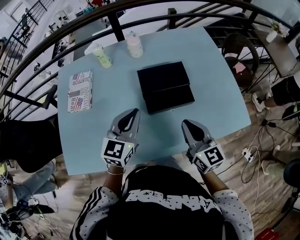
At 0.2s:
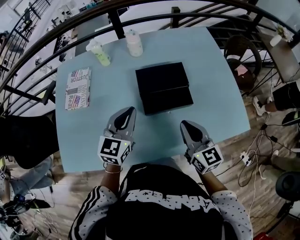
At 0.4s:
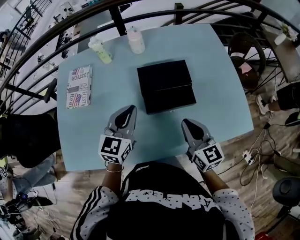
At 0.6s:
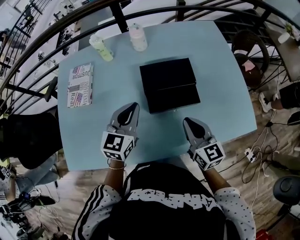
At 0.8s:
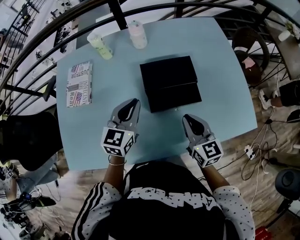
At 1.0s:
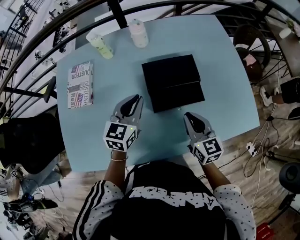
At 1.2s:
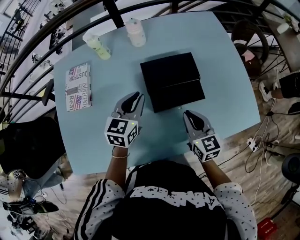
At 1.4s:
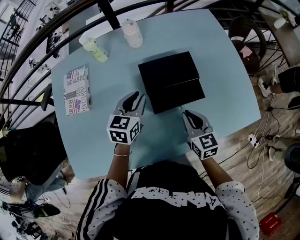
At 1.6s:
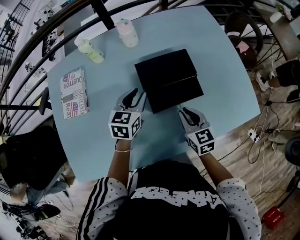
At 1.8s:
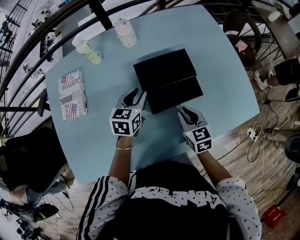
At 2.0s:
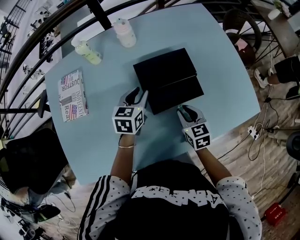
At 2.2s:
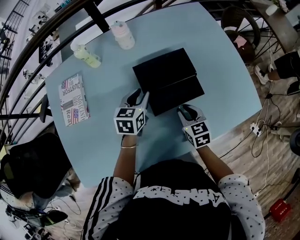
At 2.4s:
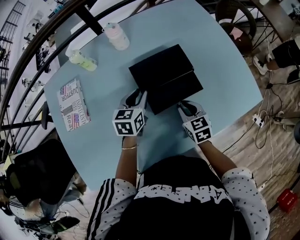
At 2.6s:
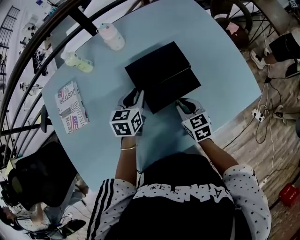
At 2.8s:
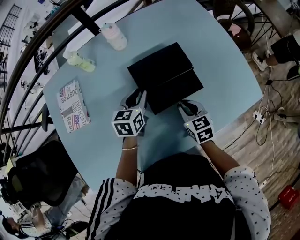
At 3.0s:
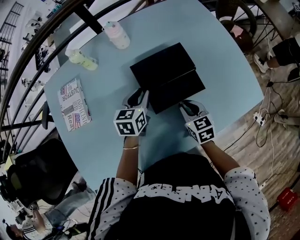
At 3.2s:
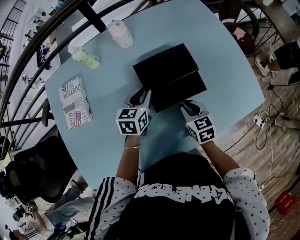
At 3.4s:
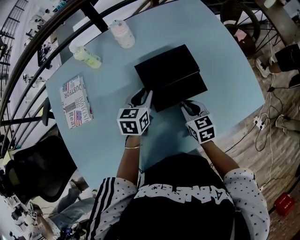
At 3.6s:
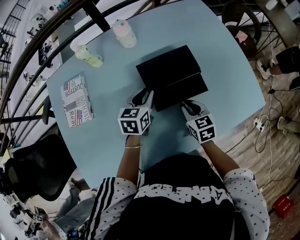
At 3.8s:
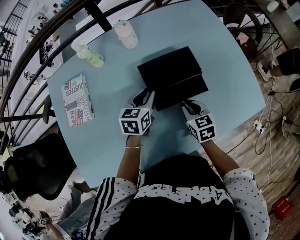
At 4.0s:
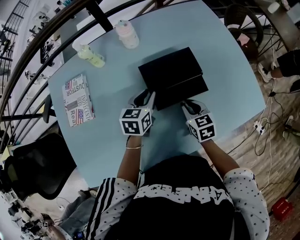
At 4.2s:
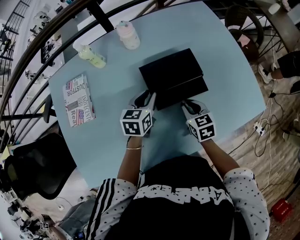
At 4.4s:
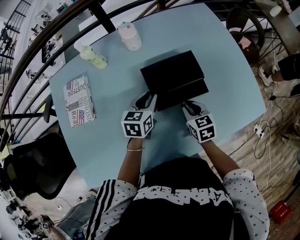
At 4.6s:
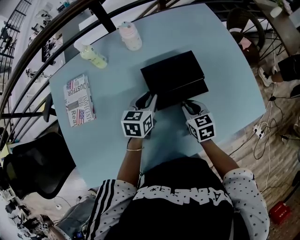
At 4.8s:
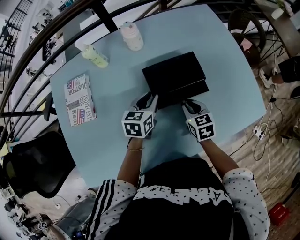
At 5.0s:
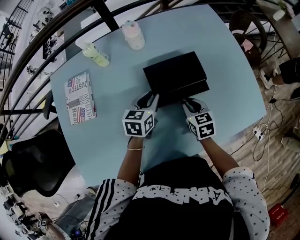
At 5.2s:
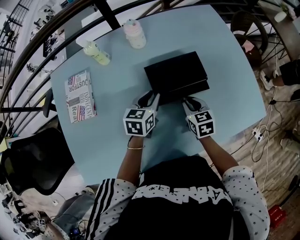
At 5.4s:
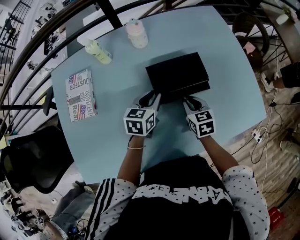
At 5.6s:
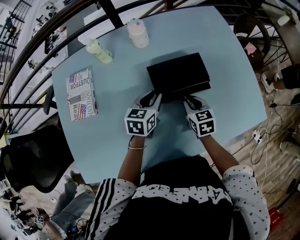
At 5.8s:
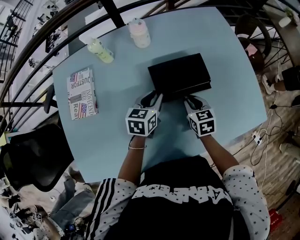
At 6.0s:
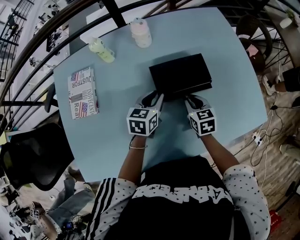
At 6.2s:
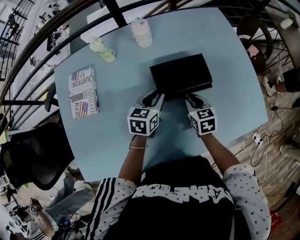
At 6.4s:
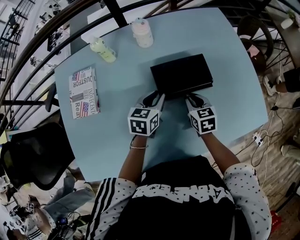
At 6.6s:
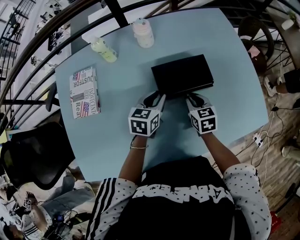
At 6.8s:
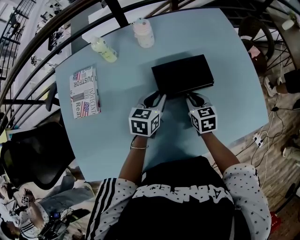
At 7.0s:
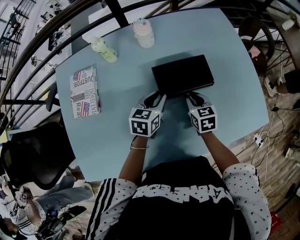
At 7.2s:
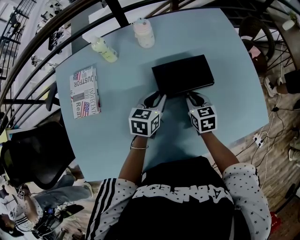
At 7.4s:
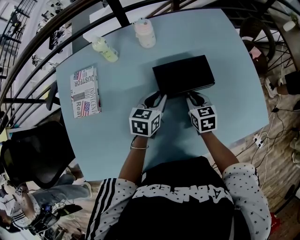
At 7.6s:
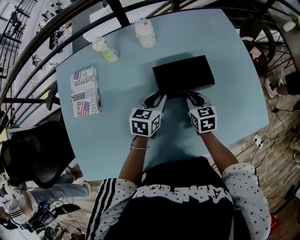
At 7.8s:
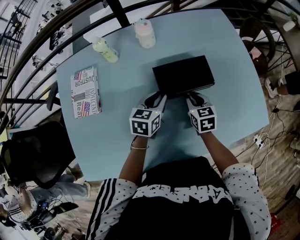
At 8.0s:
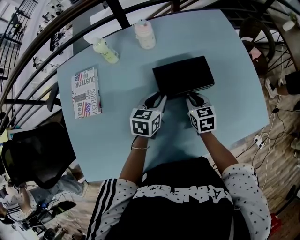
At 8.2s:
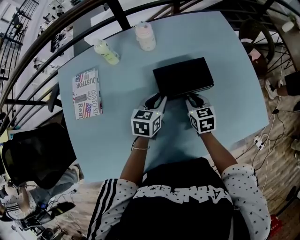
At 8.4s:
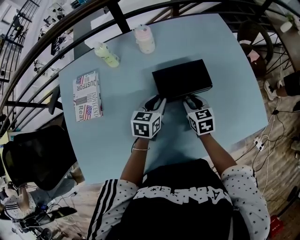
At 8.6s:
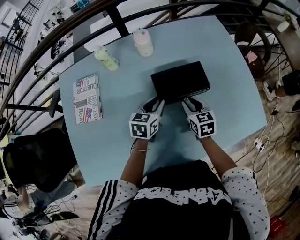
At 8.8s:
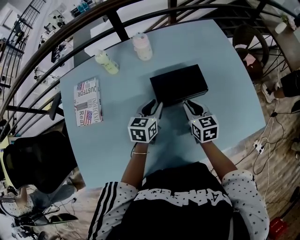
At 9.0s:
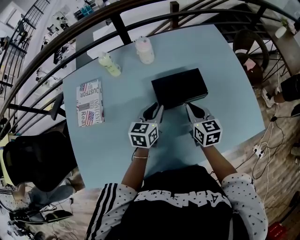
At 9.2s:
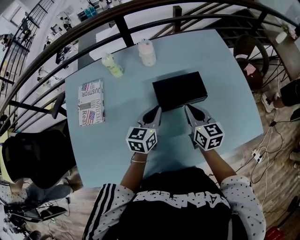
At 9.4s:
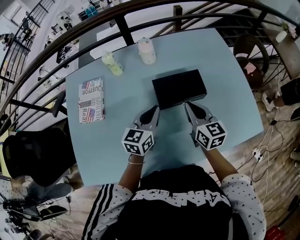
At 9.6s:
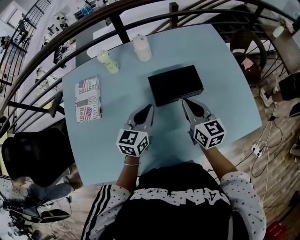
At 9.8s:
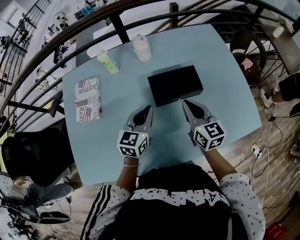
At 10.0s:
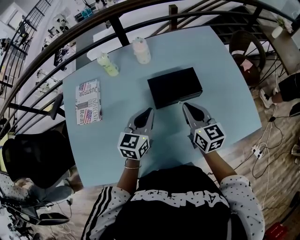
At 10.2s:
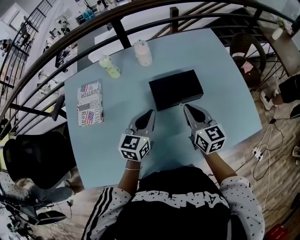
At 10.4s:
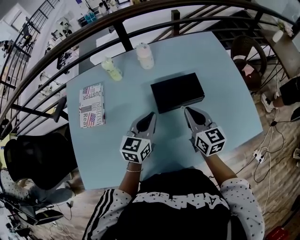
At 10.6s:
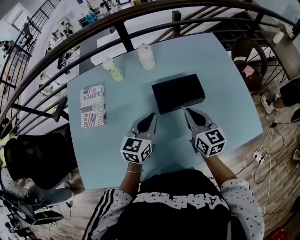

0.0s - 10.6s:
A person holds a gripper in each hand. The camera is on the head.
0.0s - 1.6s: The left gripper shifts some 15 cm forward and downward, and changes its angle by approximately 20 degrees. Meanwhile the right gripper heads downward and forward, covering roughly 15 cm, and rotates roughly 20 degrees.
1.6s - 3.0s: The grippers move only a little.
3.0s - 4.6s: The grippers move only a little.
4.6s - 7.6s: There are only small adjustments of the grippers.
7.6s - 9.0s: The right gripper heads upward, covering about 10 cm.
9.0s - 10.6s: Both grippers move upward, about 5 cm.

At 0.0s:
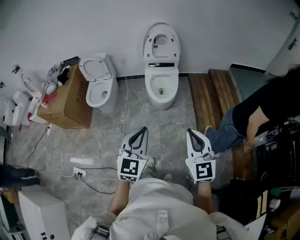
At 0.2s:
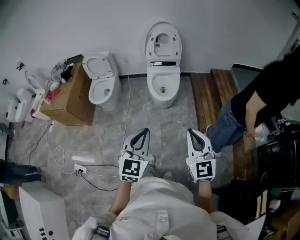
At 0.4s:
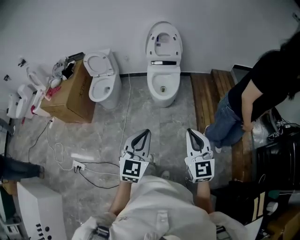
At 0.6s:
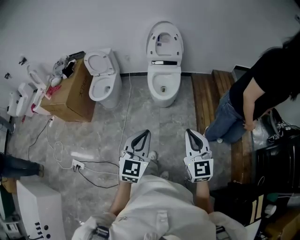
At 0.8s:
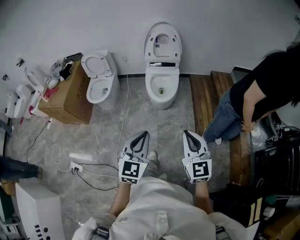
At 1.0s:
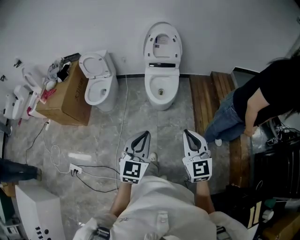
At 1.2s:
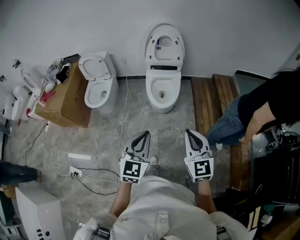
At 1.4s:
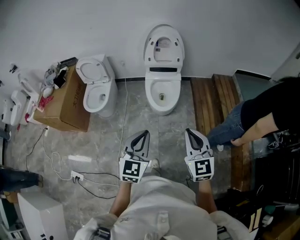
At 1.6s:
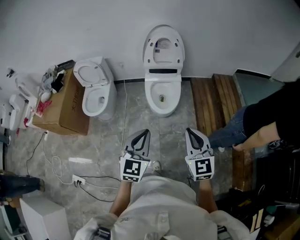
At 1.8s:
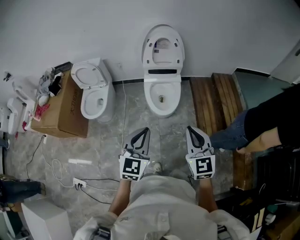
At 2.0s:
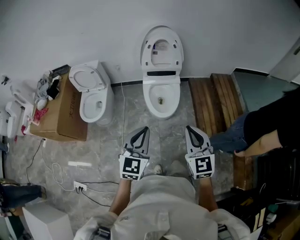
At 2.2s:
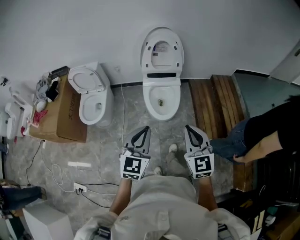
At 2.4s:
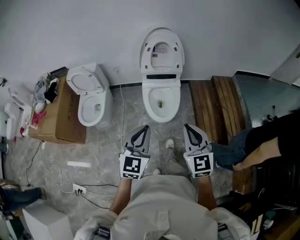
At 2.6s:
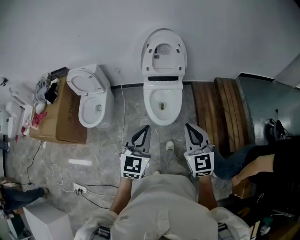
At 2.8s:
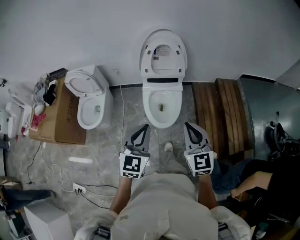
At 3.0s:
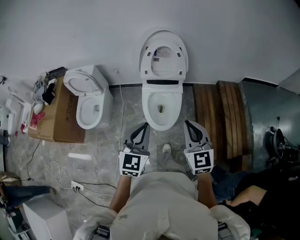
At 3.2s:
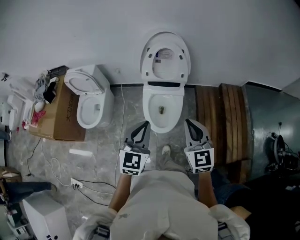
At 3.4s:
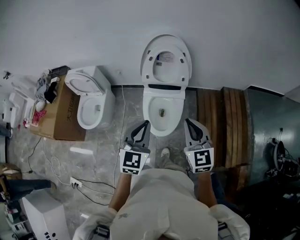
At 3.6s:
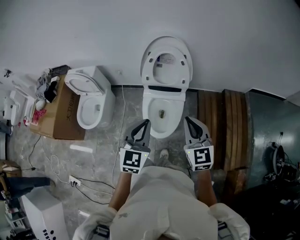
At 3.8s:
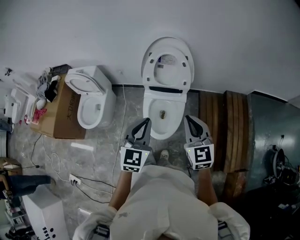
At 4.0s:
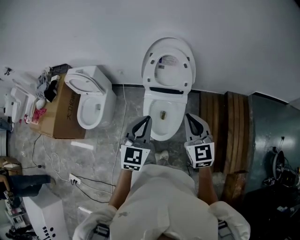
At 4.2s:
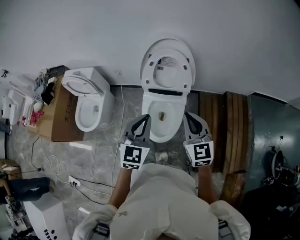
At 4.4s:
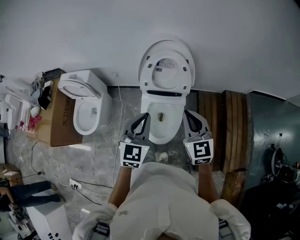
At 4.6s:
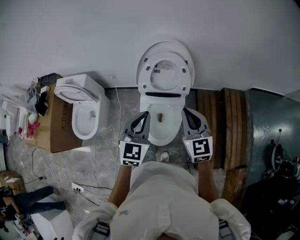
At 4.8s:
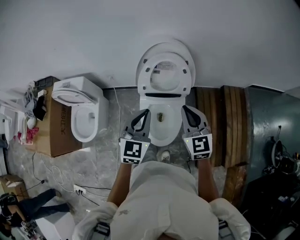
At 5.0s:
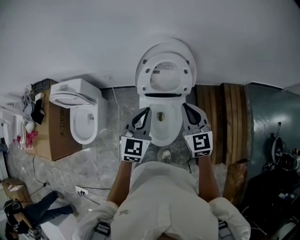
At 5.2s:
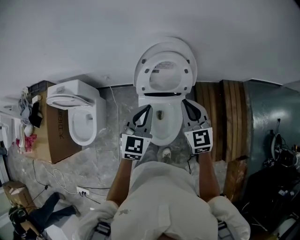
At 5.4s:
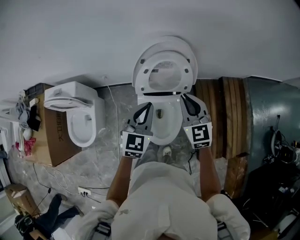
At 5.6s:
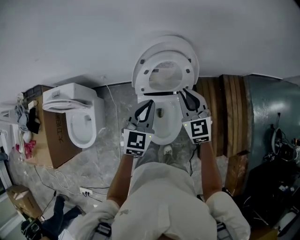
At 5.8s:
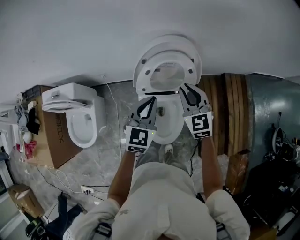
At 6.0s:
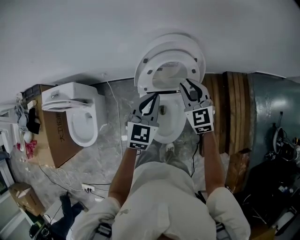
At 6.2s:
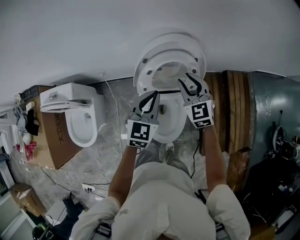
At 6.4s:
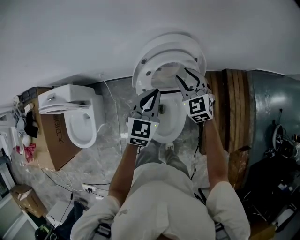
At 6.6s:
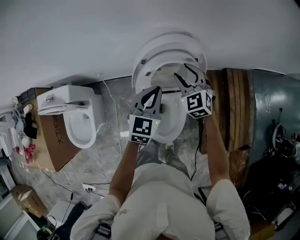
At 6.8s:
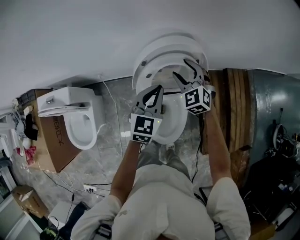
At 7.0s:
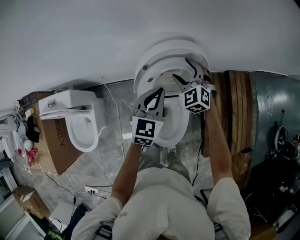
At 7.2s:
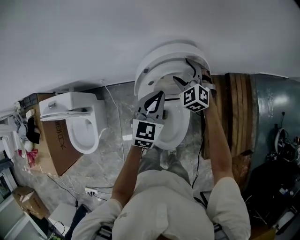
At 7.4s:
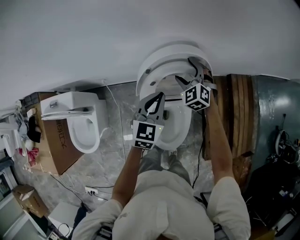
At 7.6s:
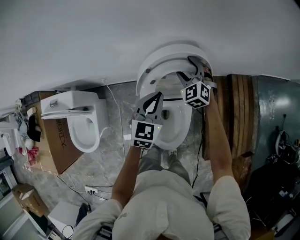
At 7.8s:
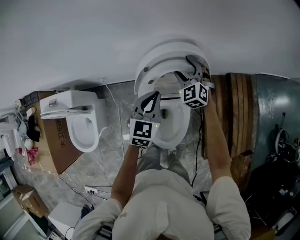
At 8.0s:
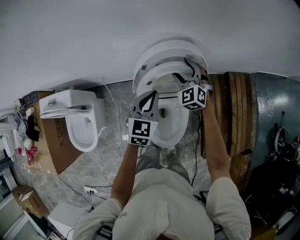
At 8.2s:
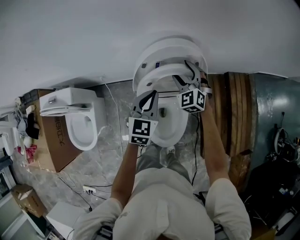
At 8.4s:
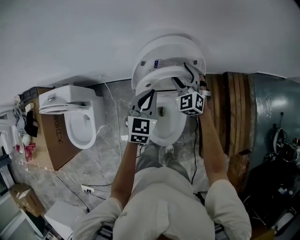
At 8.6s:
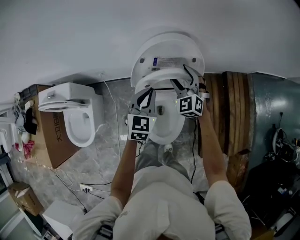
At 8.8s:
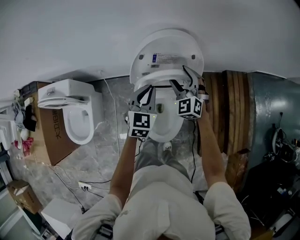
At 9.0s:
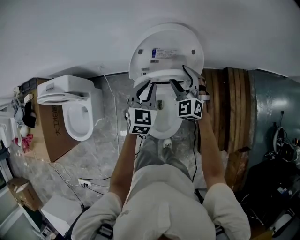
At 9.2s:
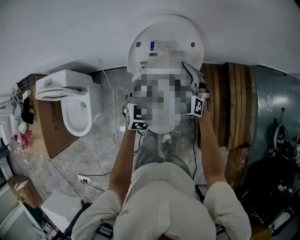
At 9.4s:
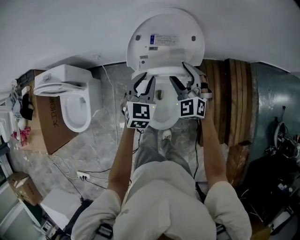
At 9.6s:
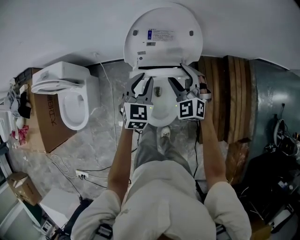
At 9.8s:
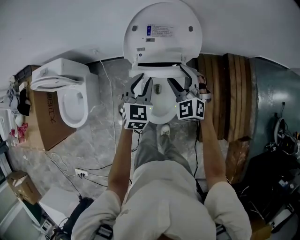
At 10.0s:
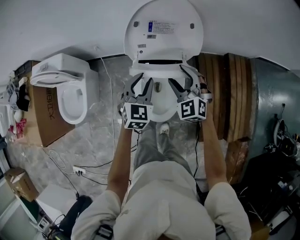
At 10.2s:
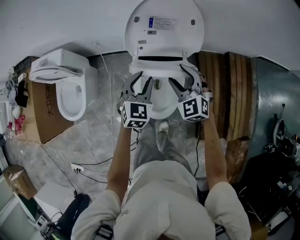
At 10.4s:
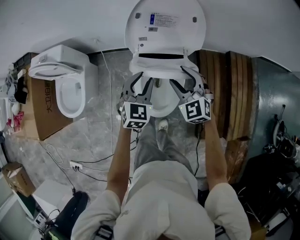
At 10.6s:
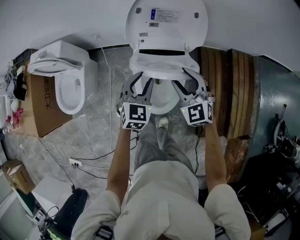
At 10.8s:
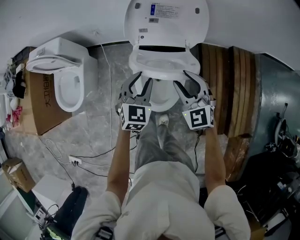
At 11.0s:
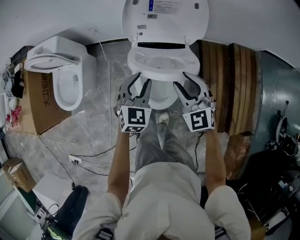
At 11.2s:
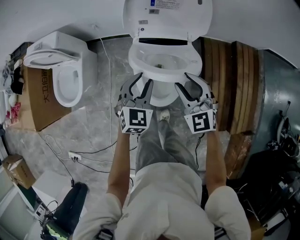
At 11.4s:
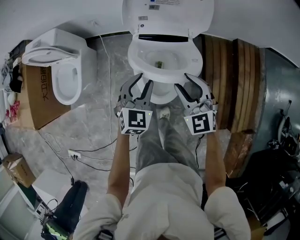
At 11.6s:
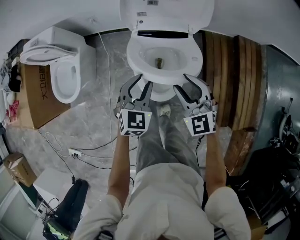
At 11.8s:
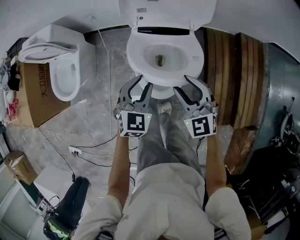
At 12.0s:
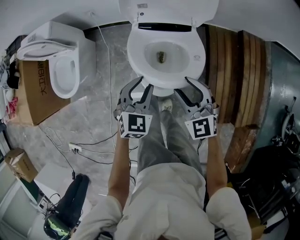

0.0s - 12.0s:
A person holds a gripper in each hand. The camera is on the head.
0.0s - 1.6s: Both grippers move forward, some 15 cm.
1.6s - 3.0s: Both grippers move forward, about 25 cm.
3.0s - 4.4s: The grippers both shift forward by roughly 20 cm.
4.4s - 6.0s: The left gripper goes roughly 20 cm forward; the right gripper shifts about 25 cm forward and downward.
6.0s - 7.6s: The left gripper shifts some 5 cm forward; the right gripper heads forward and downward, covering some 20 cm, turns by approximately 30 degrees, and opens.
7.6s - 9.0s: The left gripper goes approximately 5 cm backward, while the right gripper travels backward by about 15 cm.
9.0s - 10.4s: The two grippers go some 15 cm backward. The left gripper opens.
10.4s - 12.0s: The left gripper goes approximately 15 cm backward and downward, while the right gripper shifts about 15 cm backward.

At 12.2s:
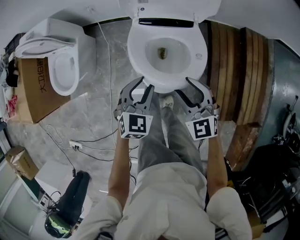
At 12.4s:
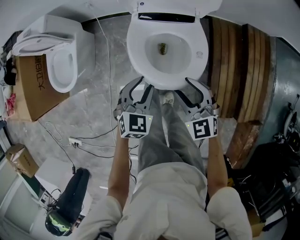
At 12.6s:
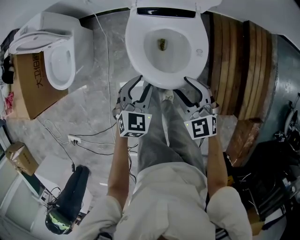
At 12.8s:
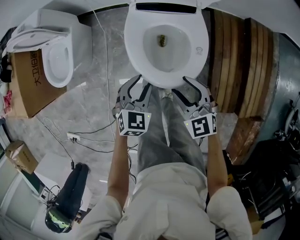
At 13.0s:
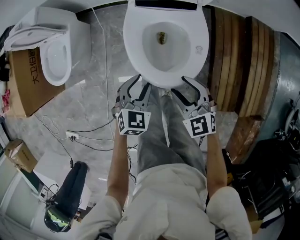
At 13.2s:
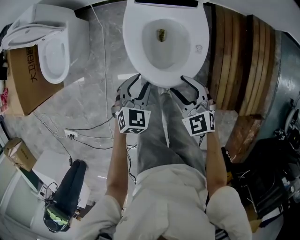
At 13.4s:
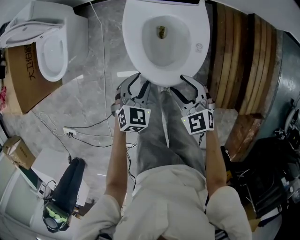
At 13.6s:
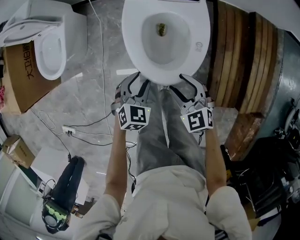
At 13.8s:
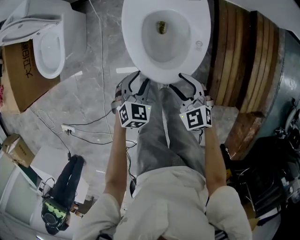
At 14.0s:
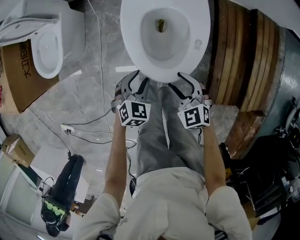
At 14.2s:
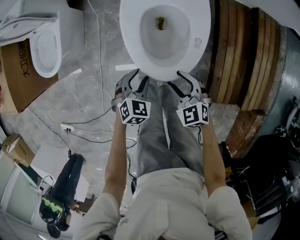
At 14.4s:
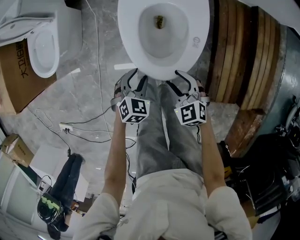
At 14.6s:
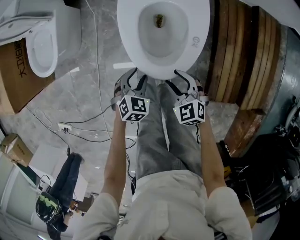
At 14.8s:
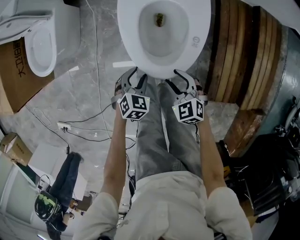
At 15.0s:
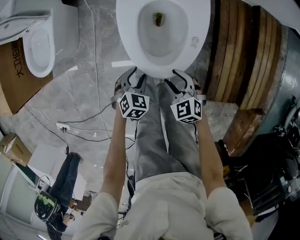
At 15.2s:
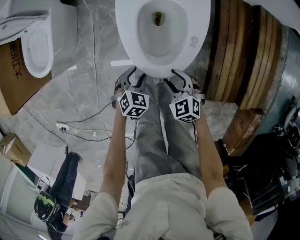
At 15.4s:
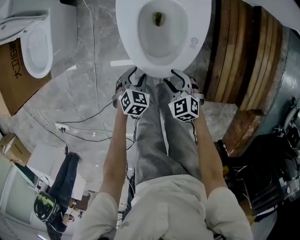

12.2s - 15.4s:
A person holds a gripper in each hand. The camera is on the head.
12.2s - 13.8s: Both grippers move downward and backward, some 20 cm.
13.8s - 15.4s: Both grippers move downward, approximately 15 cm.
